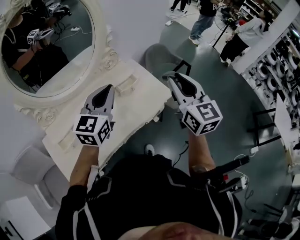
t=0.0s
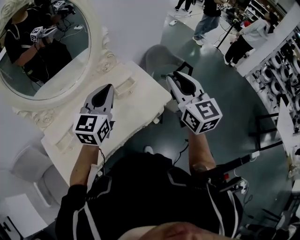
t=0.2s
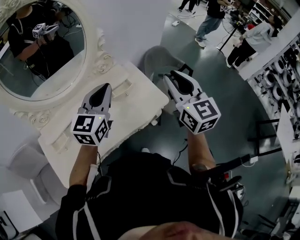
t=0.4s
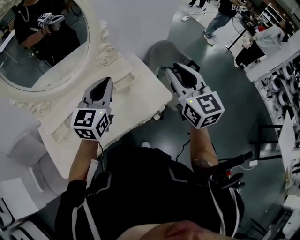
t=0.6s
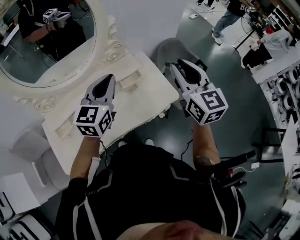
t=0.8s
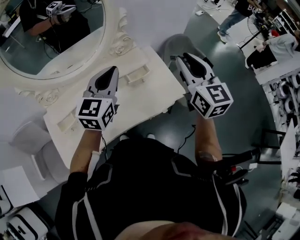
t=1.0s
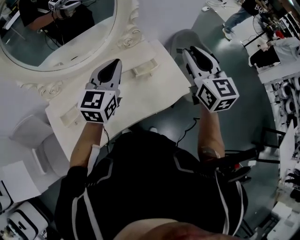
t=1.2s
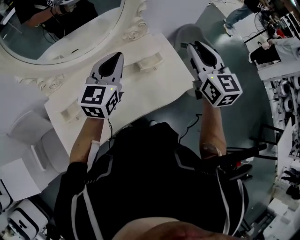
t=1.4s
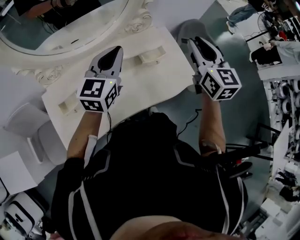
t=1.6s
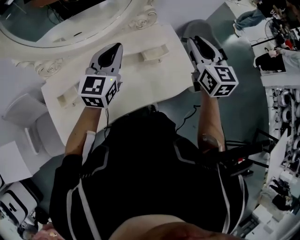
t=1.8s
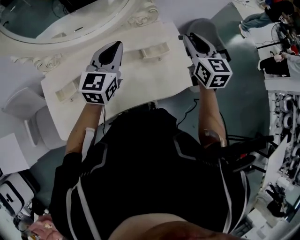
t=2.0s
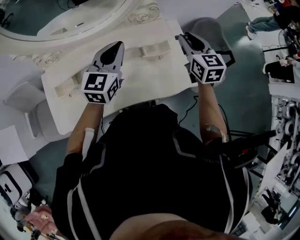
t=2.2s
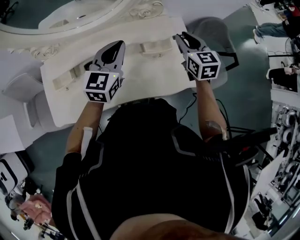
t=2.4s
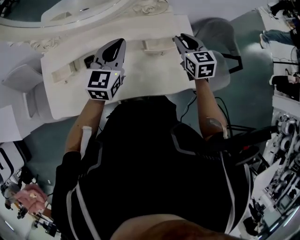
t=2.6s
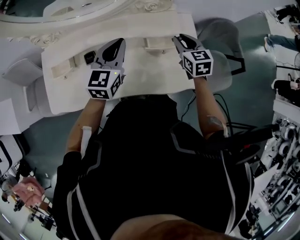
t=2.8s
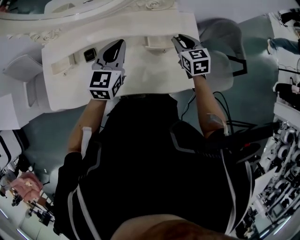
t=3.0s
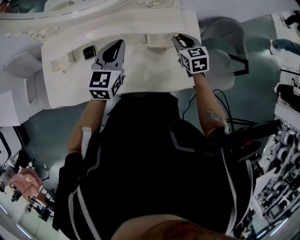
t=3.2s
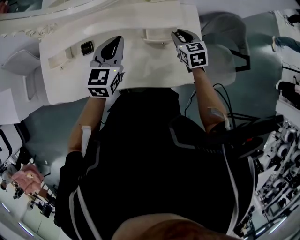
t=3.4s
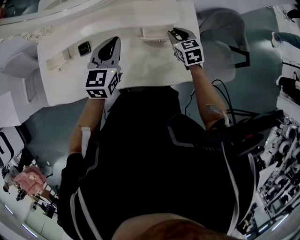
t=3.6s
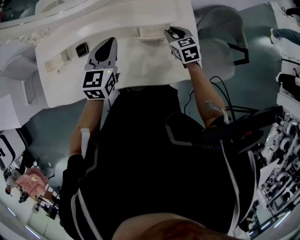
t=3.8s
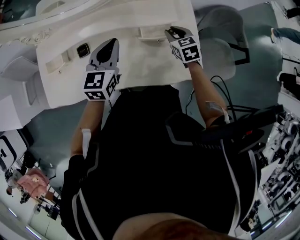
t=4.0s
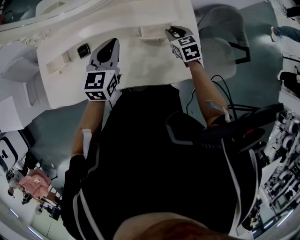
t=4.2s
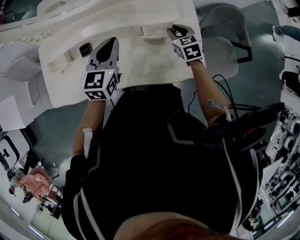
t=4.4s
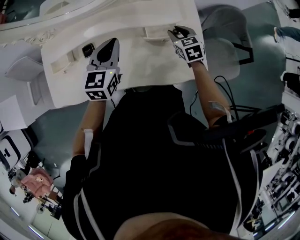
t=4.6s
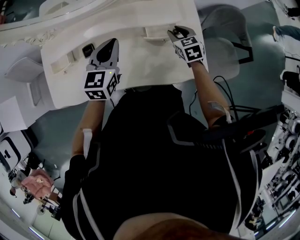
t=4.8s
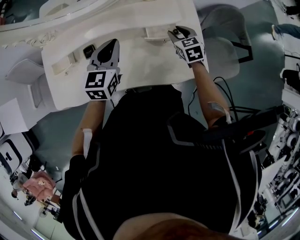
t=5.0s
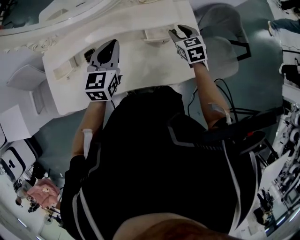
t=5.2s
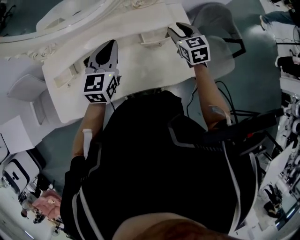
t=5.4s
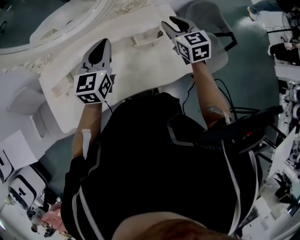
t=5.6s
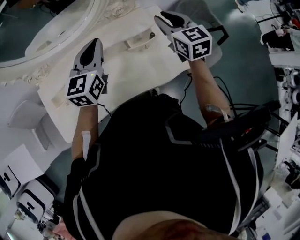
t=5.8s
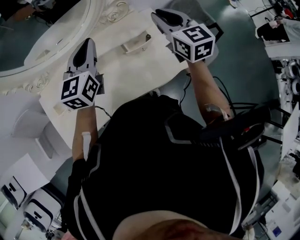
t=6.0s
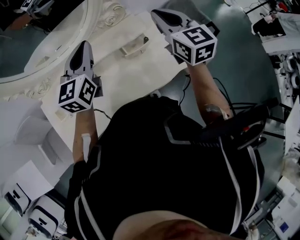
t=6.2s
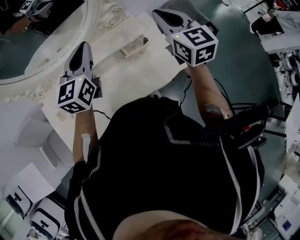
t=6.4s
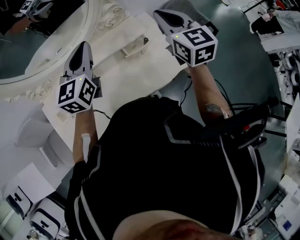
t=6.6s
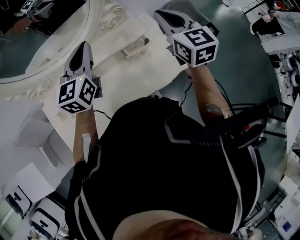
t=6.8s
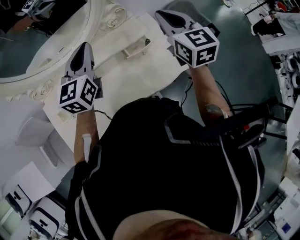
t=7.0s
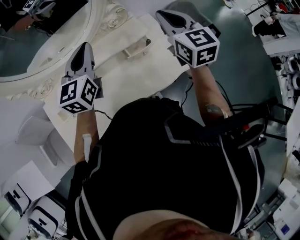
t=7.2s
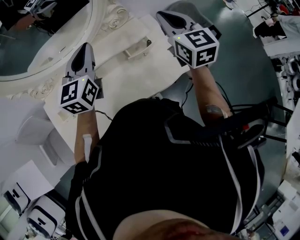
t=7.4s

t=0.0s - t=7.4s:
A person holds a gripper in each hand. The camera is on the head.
t=0.0s - t=1.4s: The left gripper is displaced forward by roughly 10 cm, while the right gripper moves forward, some 15 cm.
t=1.4s - t=3.0s: The left gripper is displaced downward by some 15 cm, and changes its angle by some 30 degrees. The right gripper heads downward, covering approximately 30 cm, and turns by about 40 degrees.
t=3.0s - t=4.4s: The right gripper goes approximately 5 cm downward.
t=4.4s - t=6.0s: The left gripper moves upward, roughly 15 cm. The right gripper moves upward, some 25 cm, and rotates some 30 degrees.
t=6.0s - t=7.4s: The grippers stay close to where they were, moving slightly.

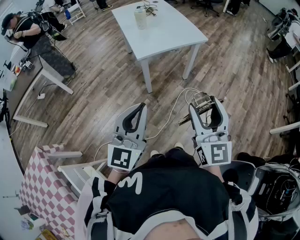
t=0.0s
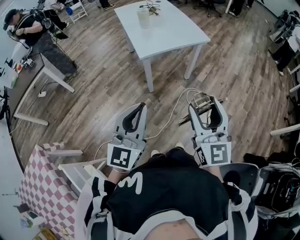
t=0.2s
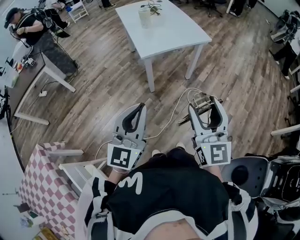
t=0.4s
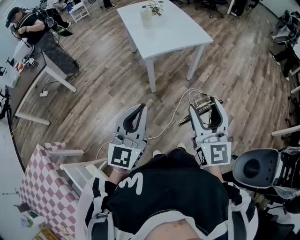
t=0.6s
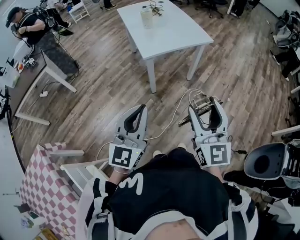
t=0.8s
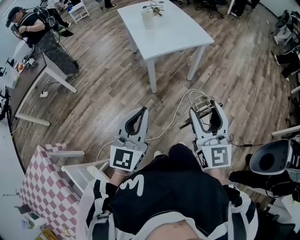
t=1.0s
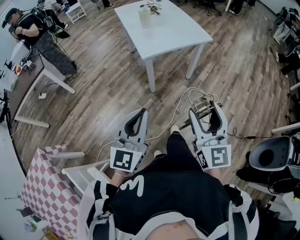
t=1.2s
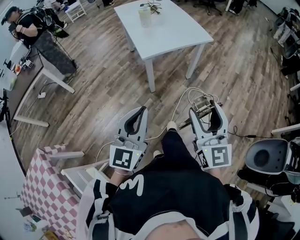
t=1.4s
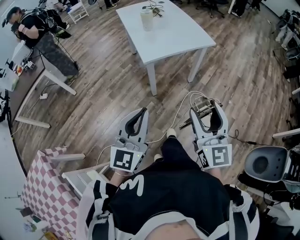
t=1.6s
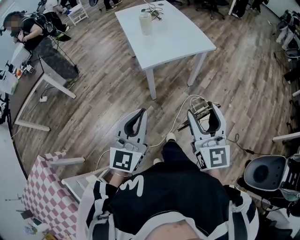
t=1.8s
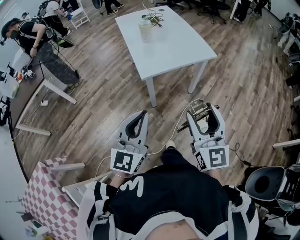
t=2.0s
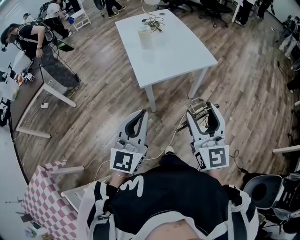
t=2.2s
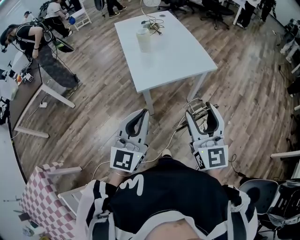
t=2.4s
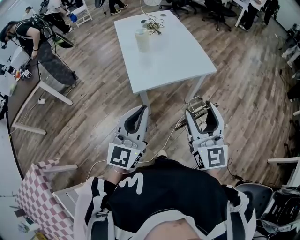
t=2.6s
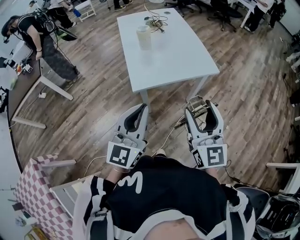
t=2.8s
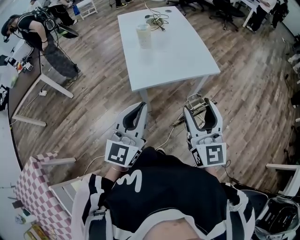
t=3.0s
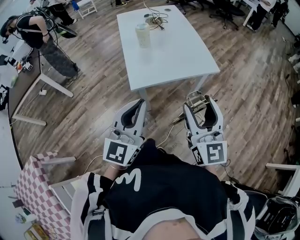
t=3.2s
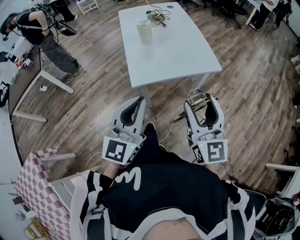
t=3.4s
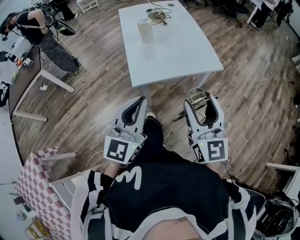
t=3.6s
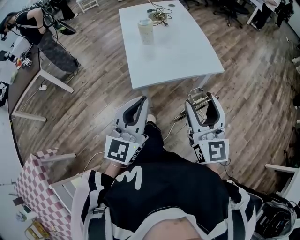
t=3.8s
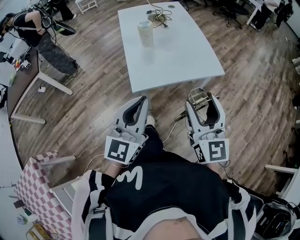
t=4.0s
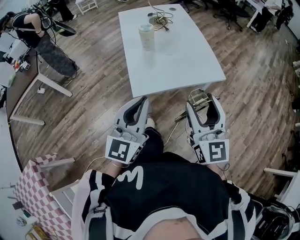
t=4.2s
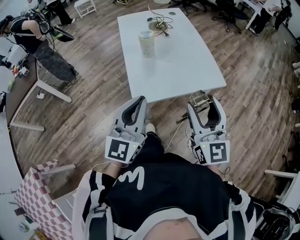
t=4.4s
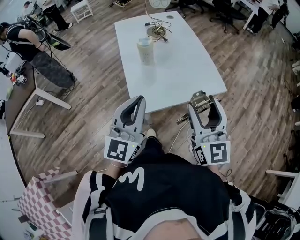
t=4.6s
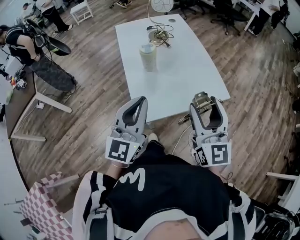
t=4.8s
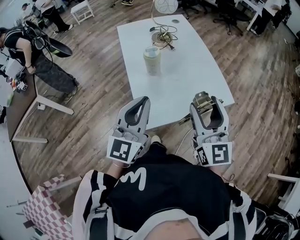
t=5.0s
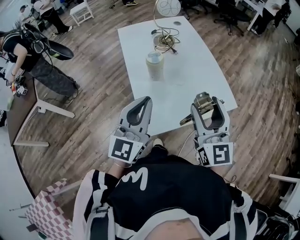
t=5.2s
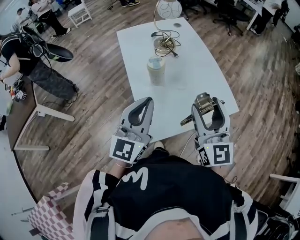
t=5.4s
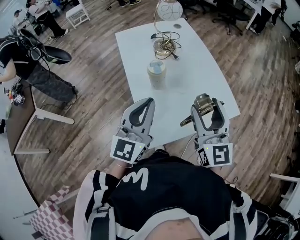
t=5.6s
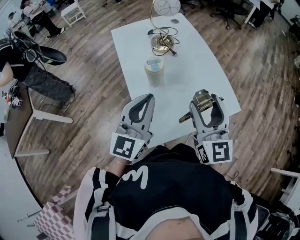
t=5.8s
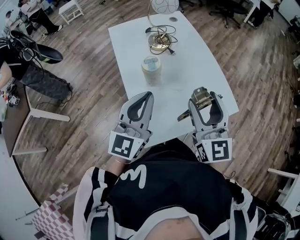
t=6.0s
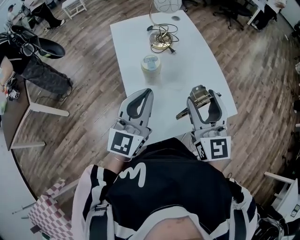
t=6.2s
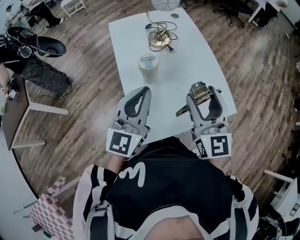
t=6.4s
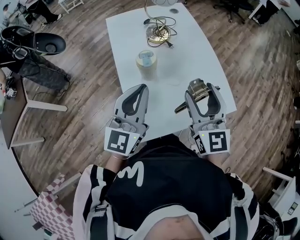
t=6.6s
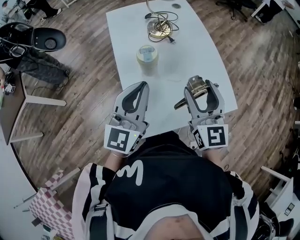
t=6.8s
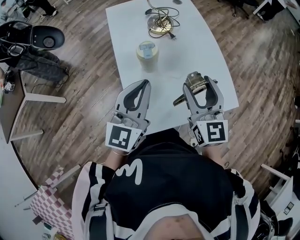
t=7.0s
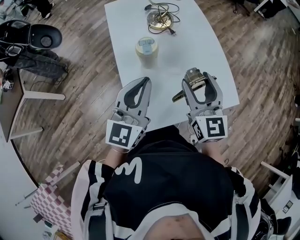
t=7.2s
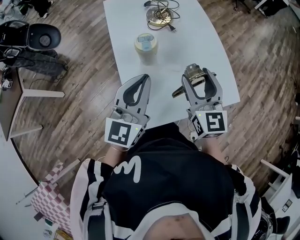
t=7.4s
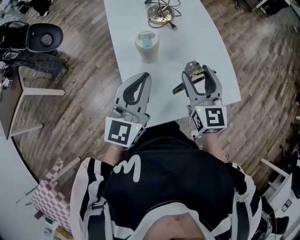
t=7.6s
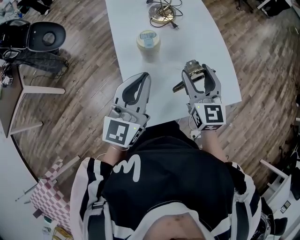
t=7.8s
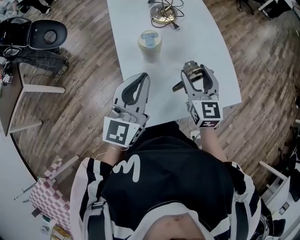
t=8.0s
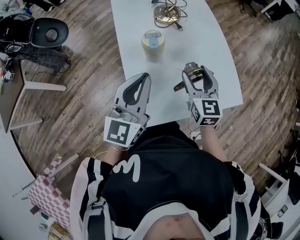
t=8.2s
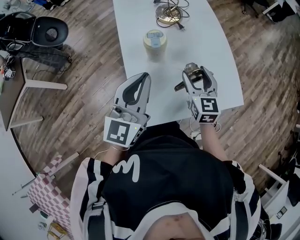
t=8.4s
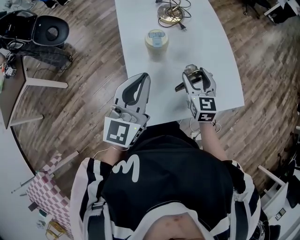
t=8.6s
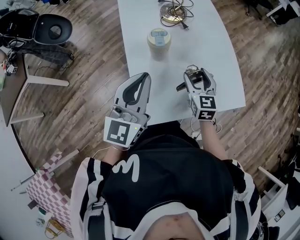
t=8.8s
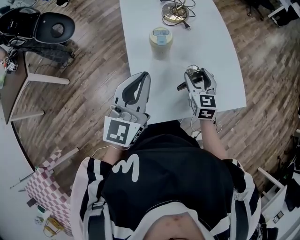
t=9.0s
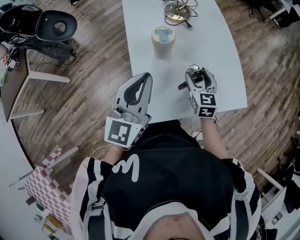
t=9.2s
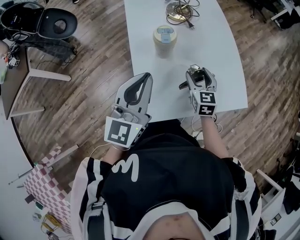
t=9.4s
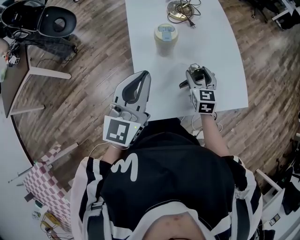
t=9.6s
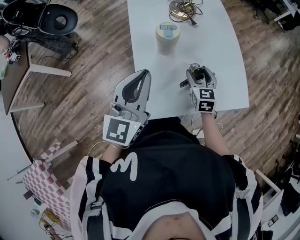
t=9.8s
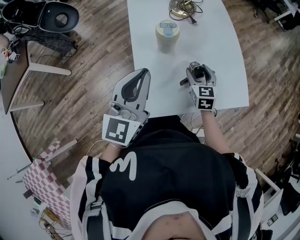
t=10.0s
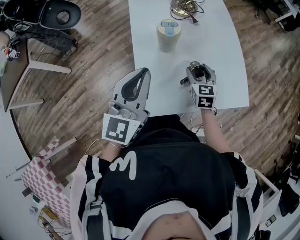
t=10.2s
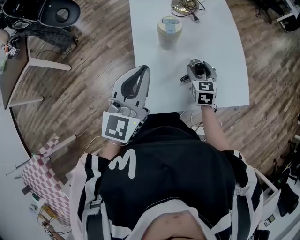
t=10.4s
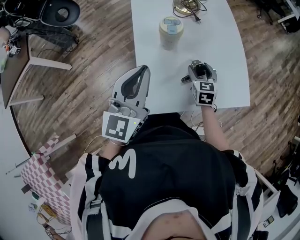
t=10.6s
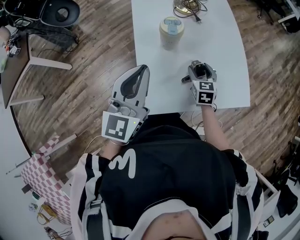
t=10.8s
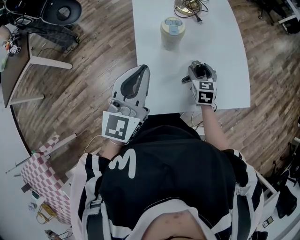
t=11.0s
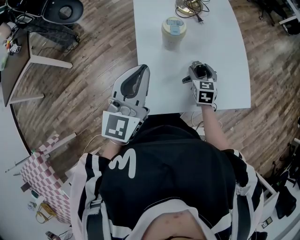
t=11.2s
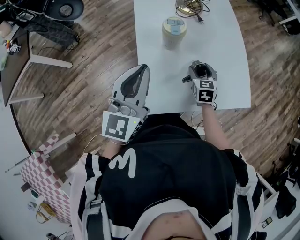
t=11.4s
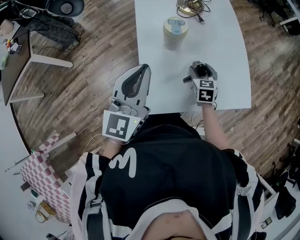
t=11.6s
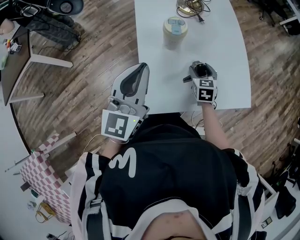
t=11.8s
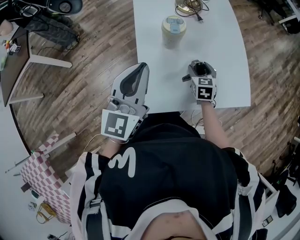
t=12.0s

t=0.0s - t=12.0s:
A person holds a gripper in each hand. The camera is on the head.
t=0.0s - t=1.6s: The left gripper shifts by about 5 cm. The right gripper moves some 5 cm.
t=1.6s - t=3.0s: The grippers both shift forward by roughly 25 cm.
t=3.0s - t=4.4s: The two grippers go about 10 cm forward.
t=4.4s - t=6.0s: The grippers both shift forward by about 25 cm.
t=6.0s - t=7.6s: The right gripper is displaced downward and forward by roughly 10 cm.
t=7.6s - t=9.0s: The right gripper moves downward, some 15 cm.
t=9.0s - t=10.4s: The right gripper is displaced downward by about 5 cm.
t=10.4s - t=12.0s: The grippers move only a little.

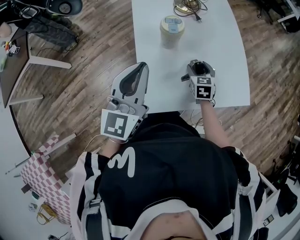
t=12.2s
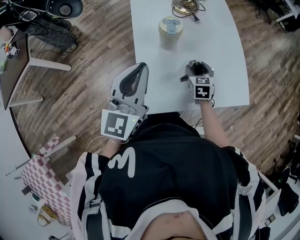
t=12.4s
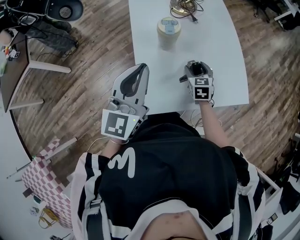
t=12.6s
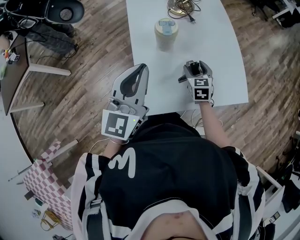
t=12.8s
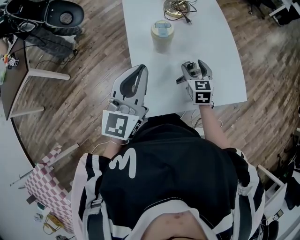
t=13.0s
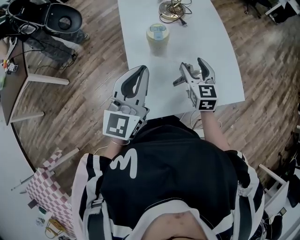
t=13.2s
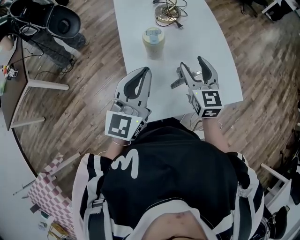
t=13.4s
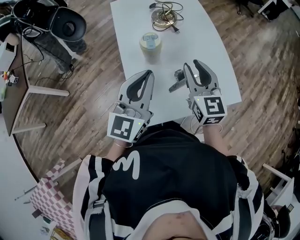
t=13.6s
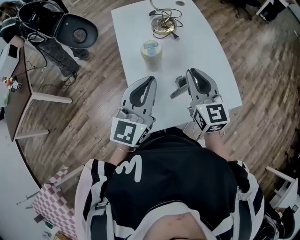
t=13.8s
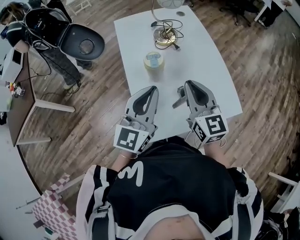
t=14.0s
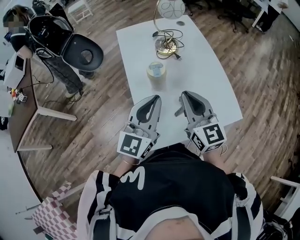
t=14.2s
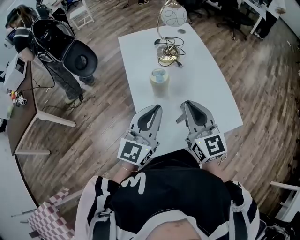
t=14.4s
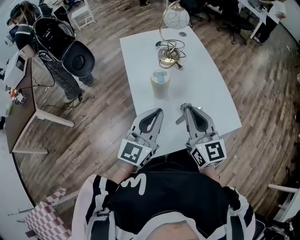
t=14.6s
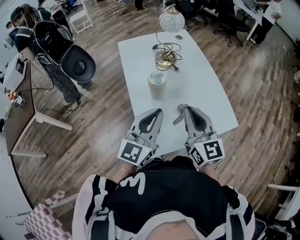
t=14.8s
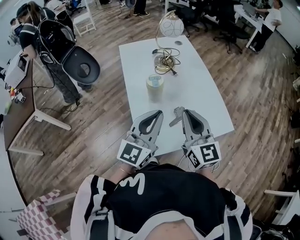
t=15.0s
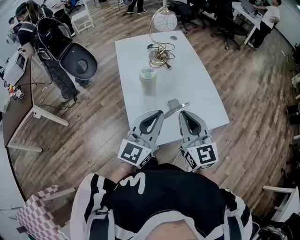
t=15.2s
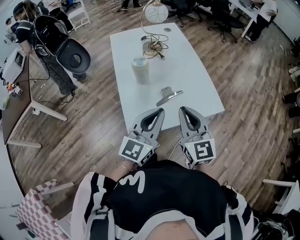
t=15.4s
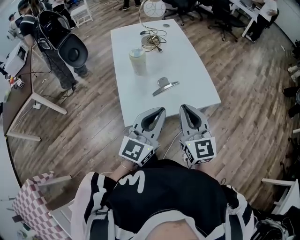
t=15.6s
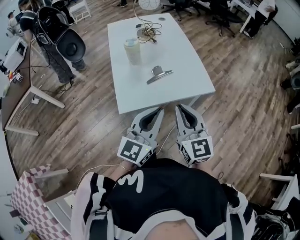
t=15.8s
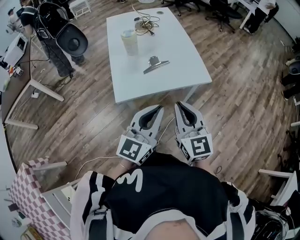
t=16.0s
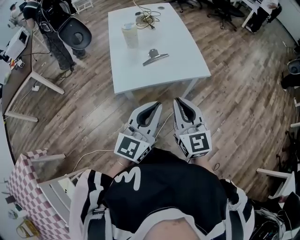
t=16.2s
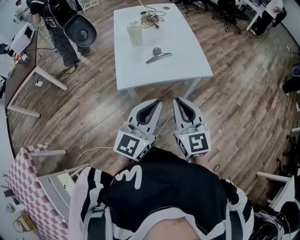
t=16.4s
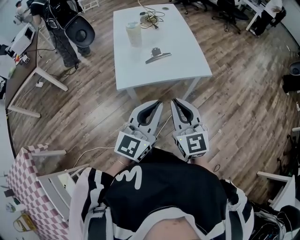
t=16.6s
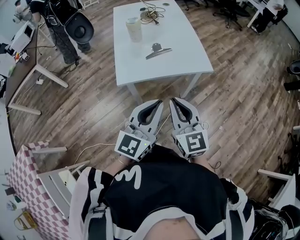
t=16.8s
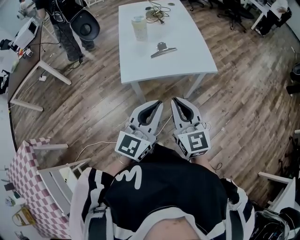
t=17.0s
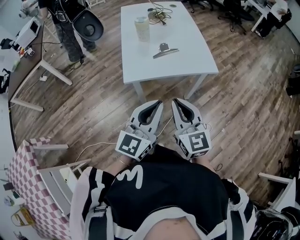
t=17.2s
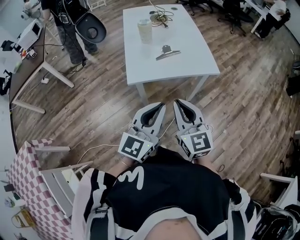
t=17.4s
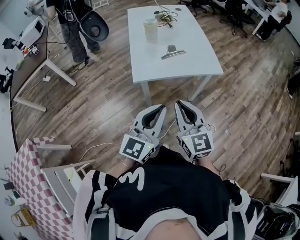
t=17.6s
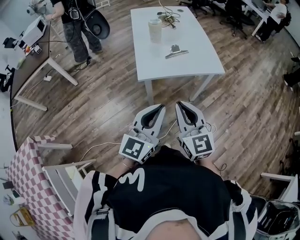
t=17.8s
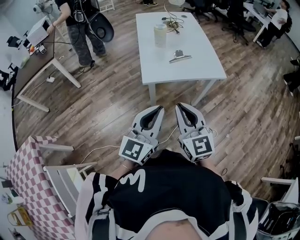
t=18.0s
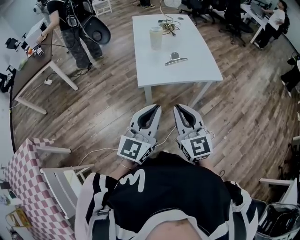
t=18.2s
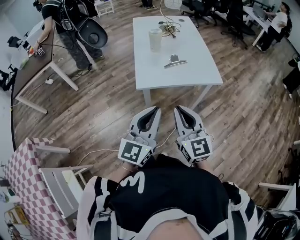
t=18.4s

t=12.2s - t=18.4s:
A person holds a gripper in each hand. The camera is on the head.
t=12.2s - t=13.8s: The left gripper shifts roughly 5 cm to the right. The right gripper goes about 25 cm upward, tilts its fingers about 30 degrees upward, and closes up.
t=13.8s - t=15.4s: The left gripper moves backward and to the right, some 15 cm; the right gripper moves backward, about 15 cm.
t=15.4s - t=16.8s: The right gripper travels backward by approximately 20 cm. The left gripper goes about 25 cm backward and to the right.
t=16.8s - t=18.4s: Both grippers move to the left, some 10 cm.
